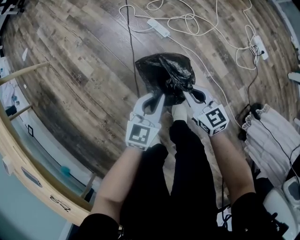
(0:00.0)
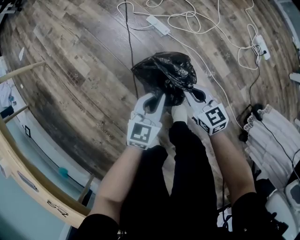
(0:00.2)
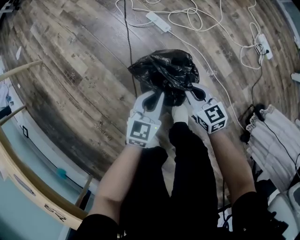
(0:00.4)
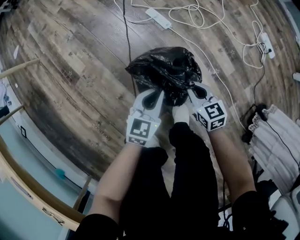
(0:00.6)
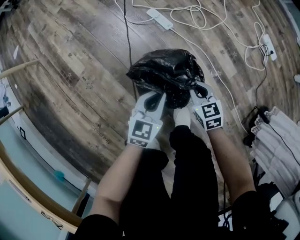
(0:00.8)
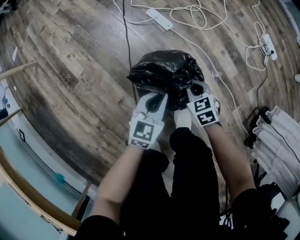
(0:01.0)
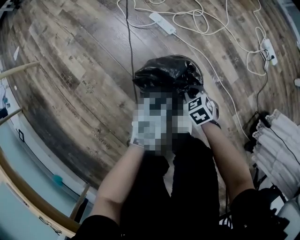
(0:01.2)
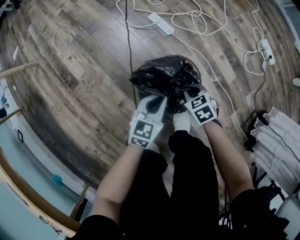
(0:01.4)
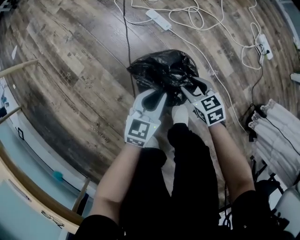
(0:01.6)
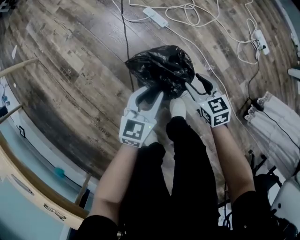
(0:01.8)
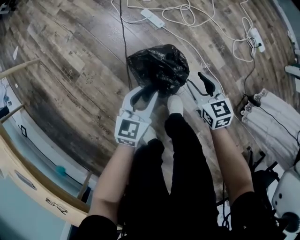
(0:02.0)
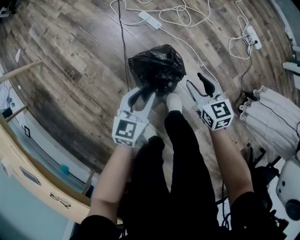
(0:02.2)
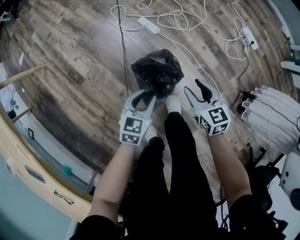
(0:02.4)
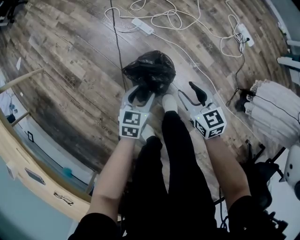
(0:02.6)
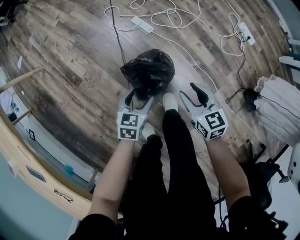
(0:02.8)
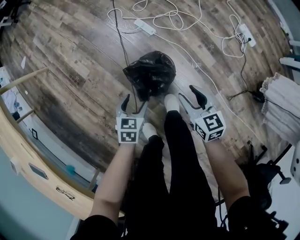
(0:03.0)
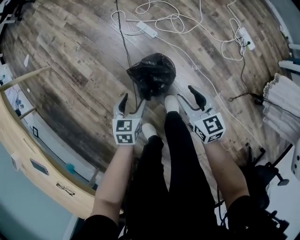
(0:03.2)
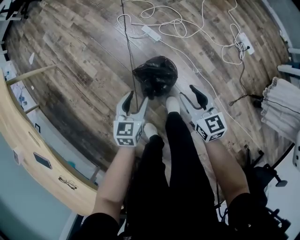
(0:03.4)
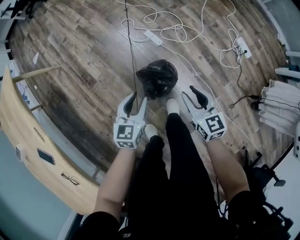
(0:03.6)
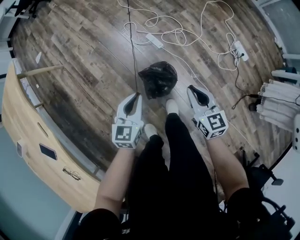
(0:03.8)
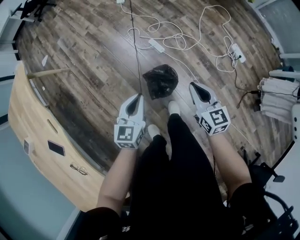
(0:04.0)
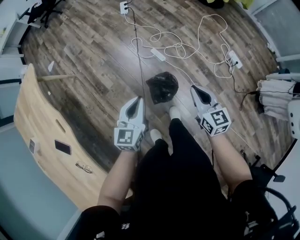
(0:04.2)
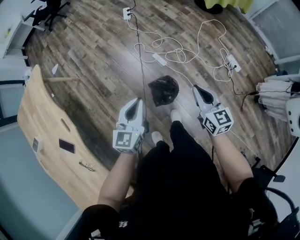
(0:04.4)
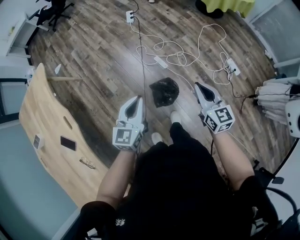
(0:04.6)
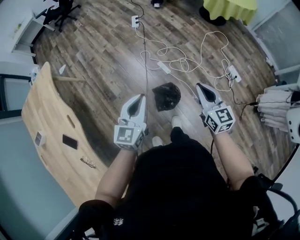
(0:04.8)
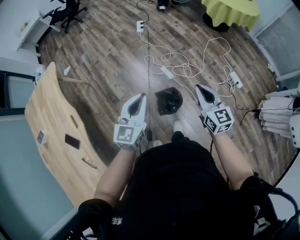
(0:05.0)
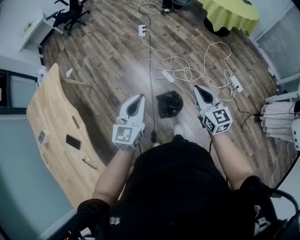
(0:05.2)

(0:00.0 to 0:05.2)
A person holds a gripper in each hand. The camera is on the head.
0:00.0 - 0:01.8: The grippers both shift downward by about 10 cm. The right gripper opens its fingers; the left gripper opens its fingers.
0:01.8 - 0:03.4: Both grippers travel together upward, about 25 cm. The left gripper opens up.
0:03.4 - 0:05.2: Both grippers travel together upward, approximately 40 cm. The left gripper rotates approximately 30 degrees, and closes; the right gripper closes.

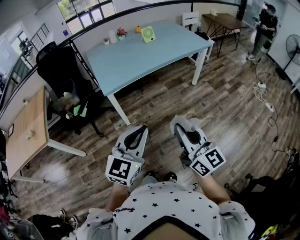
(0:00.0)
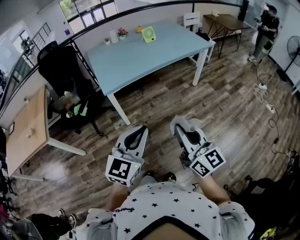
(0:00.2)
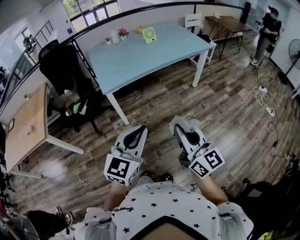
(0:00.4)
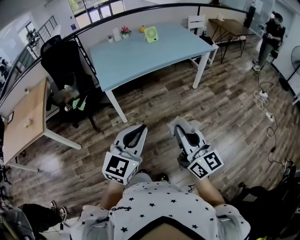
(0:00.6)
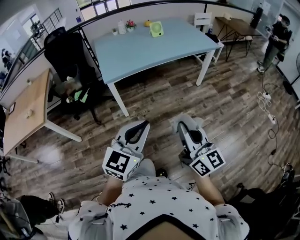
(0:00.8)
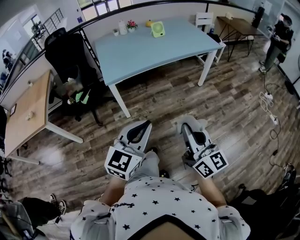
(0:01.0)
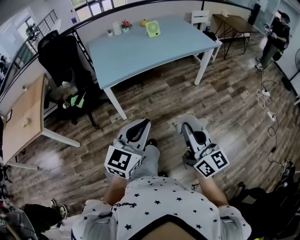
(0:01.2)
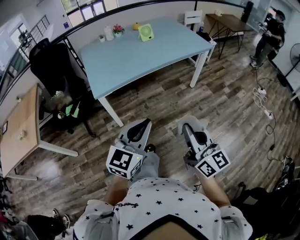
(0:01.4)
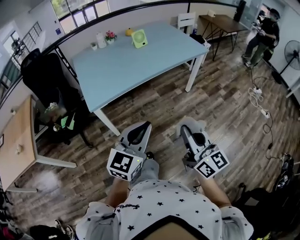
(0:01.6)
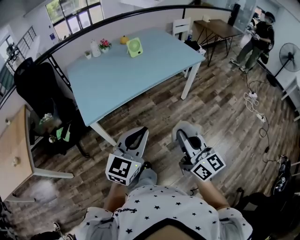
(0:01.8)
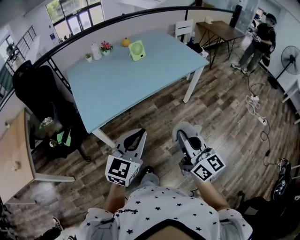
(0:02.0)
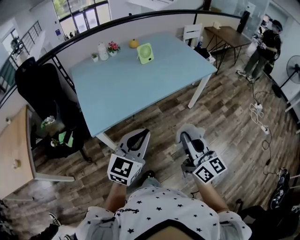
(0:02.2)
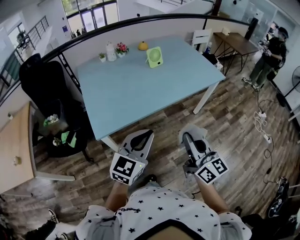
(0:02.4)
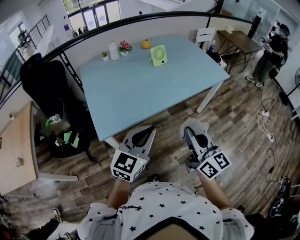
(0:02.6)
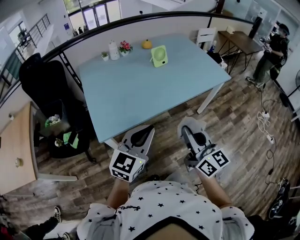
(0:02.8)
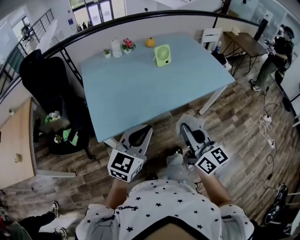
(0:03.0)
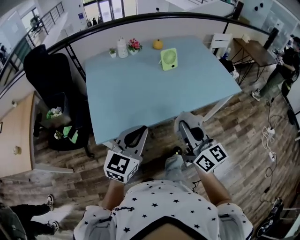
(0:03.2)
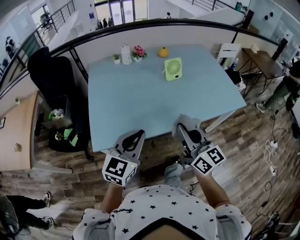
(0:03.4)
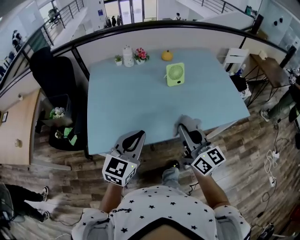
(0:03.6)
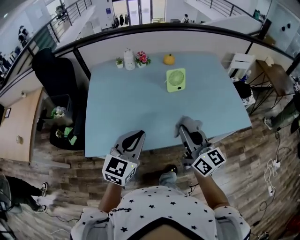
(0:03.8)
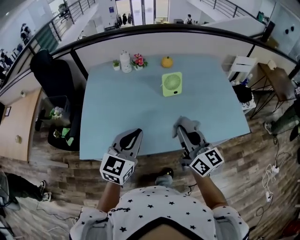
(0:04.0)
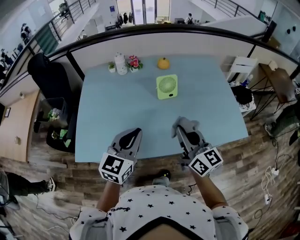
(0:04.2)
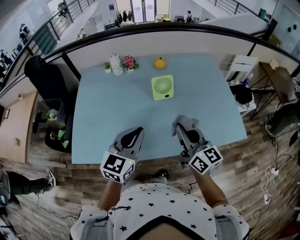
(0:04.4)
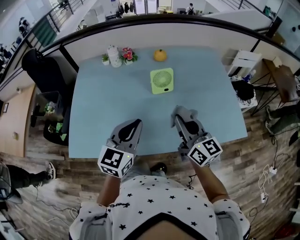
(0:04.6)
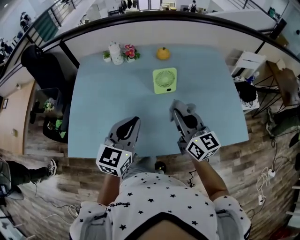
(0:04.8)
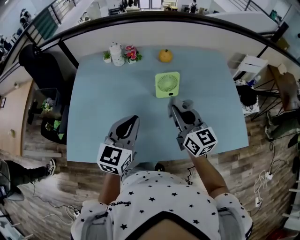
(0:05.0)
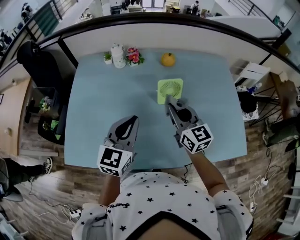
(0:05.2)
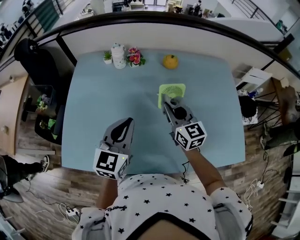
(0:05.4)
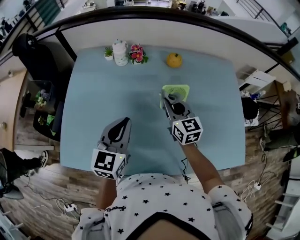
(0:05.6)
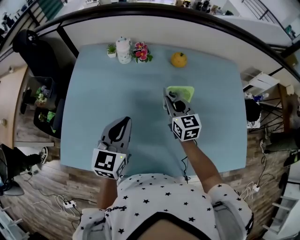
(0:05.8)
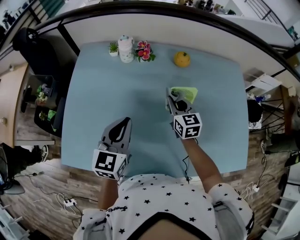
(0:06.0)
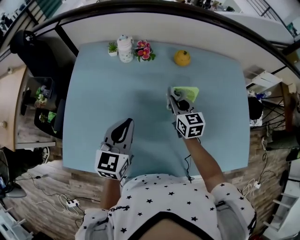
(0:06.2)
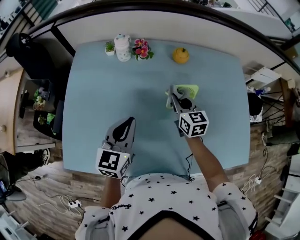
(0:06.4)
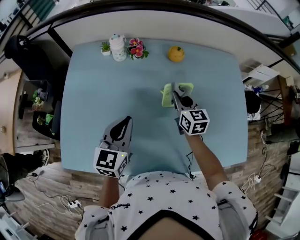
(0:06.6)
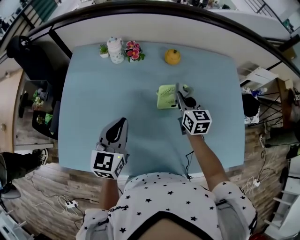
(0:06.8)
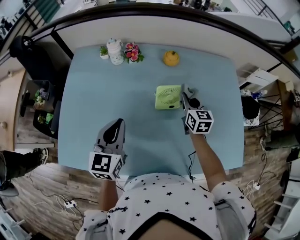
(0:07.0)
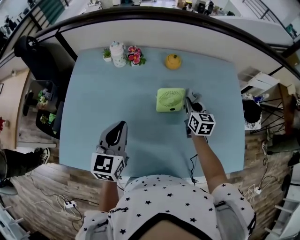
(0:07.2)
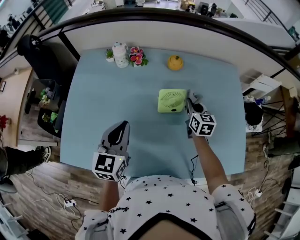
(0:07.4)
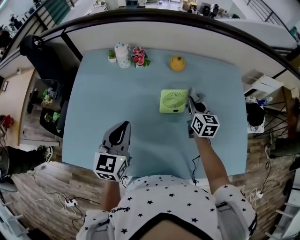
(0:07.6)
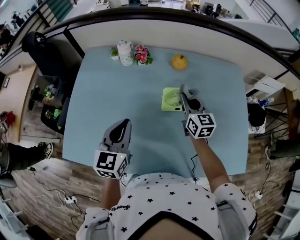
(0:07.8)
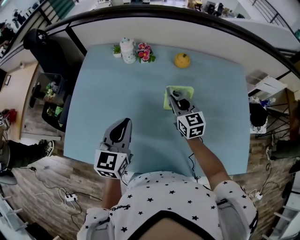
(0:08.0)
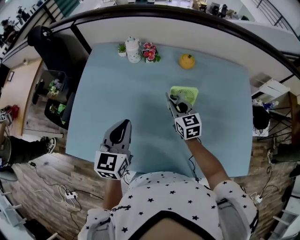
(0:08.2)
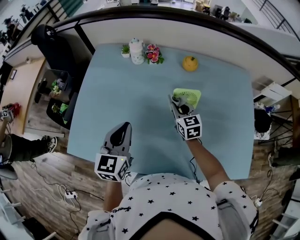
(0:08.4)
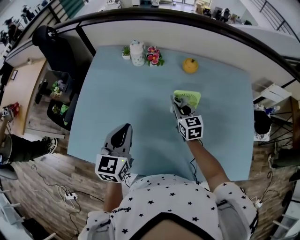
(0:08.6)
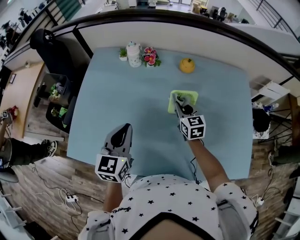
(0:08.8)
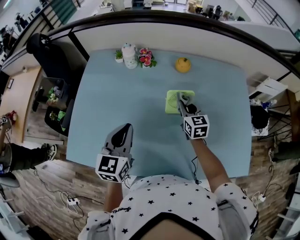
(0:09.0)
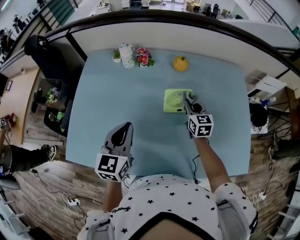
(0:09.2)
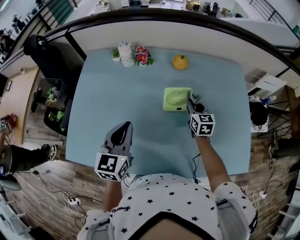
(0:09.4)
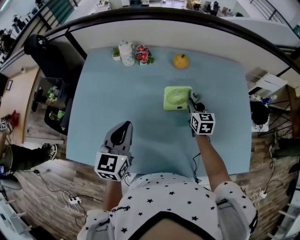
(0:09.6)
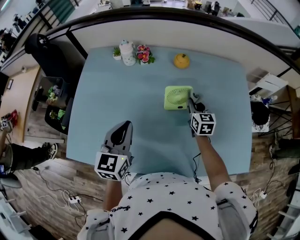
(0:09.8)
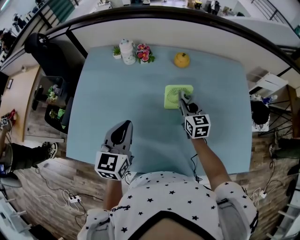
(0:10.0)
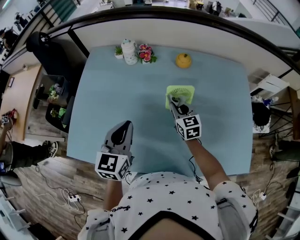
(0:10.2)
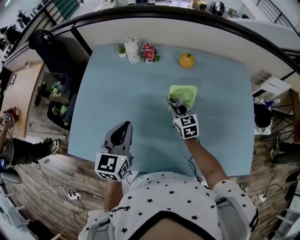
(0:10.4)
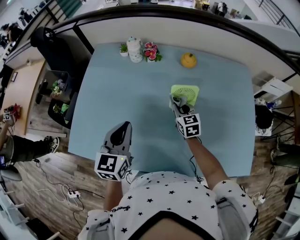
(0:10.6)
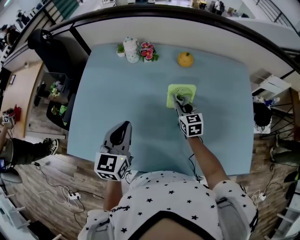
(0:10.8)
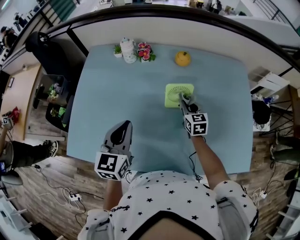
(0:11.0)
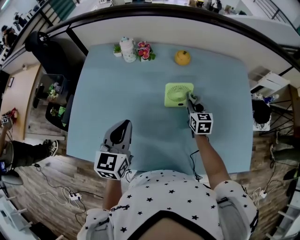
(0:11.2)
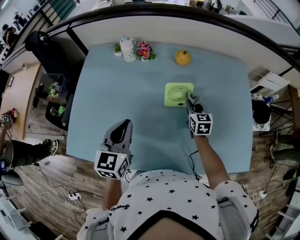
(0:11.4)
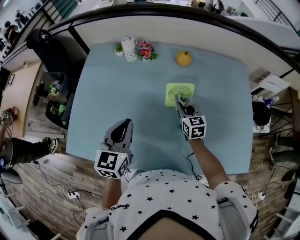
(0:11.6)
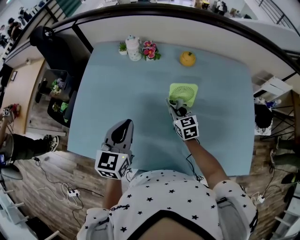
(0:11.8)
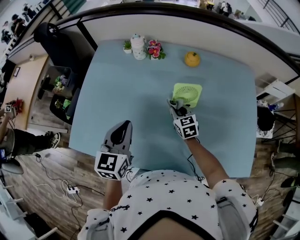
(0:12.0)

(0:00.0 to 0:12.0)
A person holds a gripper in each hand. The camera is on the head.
0:00.0 - 0:01.6: The left gripper moves forward, some 15 cm. The right gripper shifts approximately 15 cm forward and to the right.
0:01.6 - 0:03.0: Both grippers travel together forward and to the left, some 25 cm.
0:03.0 - 0:04.4: The grippers both shift forward and to the right by roughly 35 cm. The left gripper changes its angle by about 20 degrees.
0:04.4 - 0:06.0: The right gripper shifts roughly 35 cm forward and downward, and rotates roughly 30 degrees, while the left gripper moves forward and to the left, roughly 20 cm.
0:06.0 - 0:07.6: The right gripper moves to the right, roughly 15 cm.
0:07.6 - 0:09.0: The right gripper shifts roughly 5 cm to the left.
0:09.0 - 0:10.4: The right gripper heads to the left, covering roughly 5 cm.
0:10.4 - 0:12.0: The right gripper travels to the right and back again, some 10 cm each way.

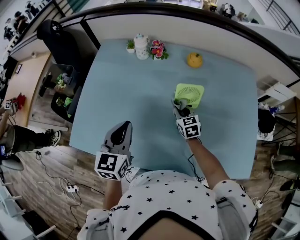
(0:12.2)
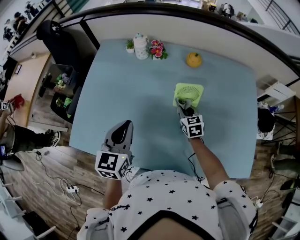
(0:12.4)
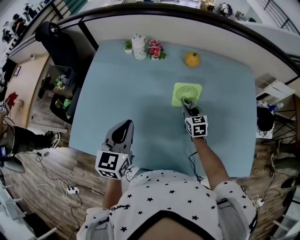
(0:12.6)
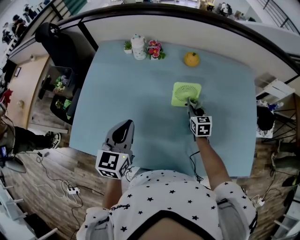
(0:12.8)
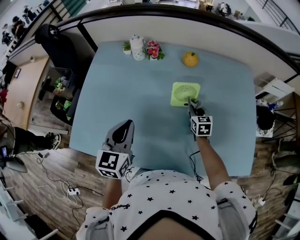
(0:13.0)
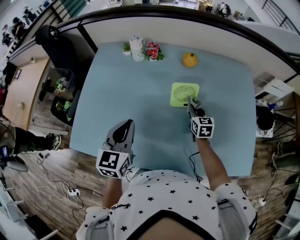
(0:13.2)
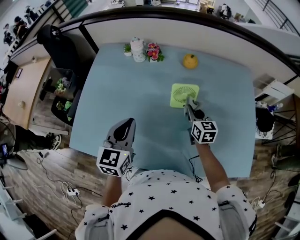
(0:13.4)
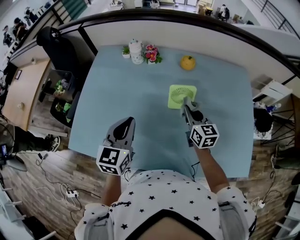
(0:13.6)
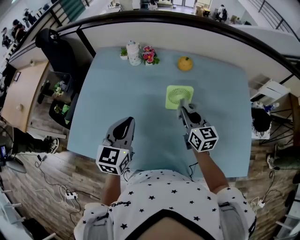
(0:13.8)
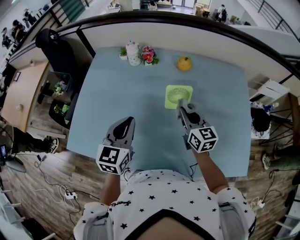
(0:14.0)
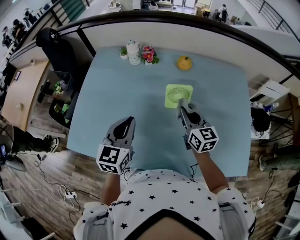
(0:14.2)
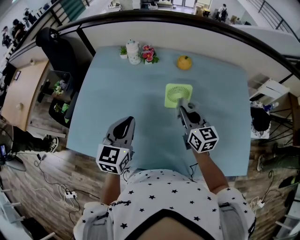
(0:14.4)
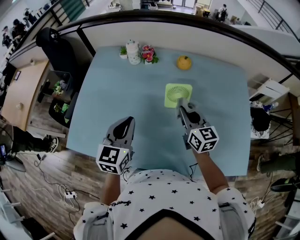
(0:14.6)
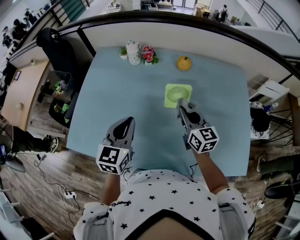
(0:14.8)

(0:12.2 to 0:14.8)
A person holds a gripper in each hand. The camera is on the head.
0:12.2 - 0:13.4: The right gripper is displaced to the right and upward by approximately 10 cm, and swivels some 20 degrees.
0:13.4 - 0:14.8: The right gripper travels upward by some 10 cm.

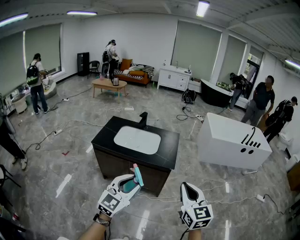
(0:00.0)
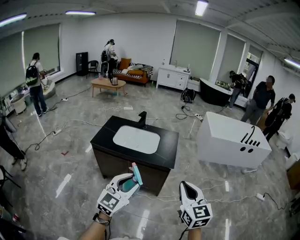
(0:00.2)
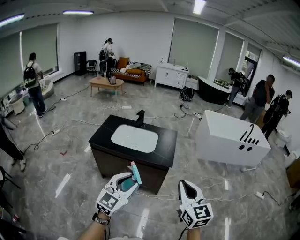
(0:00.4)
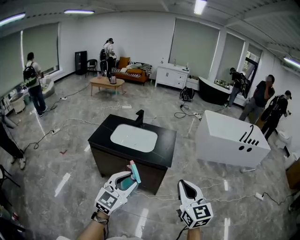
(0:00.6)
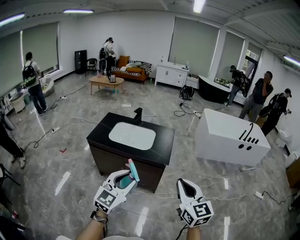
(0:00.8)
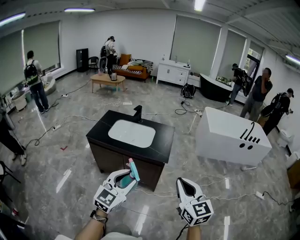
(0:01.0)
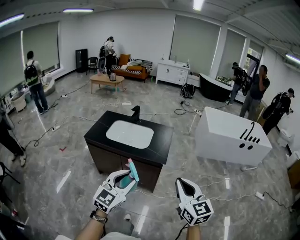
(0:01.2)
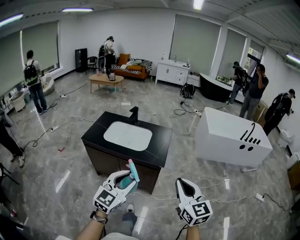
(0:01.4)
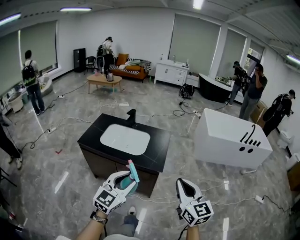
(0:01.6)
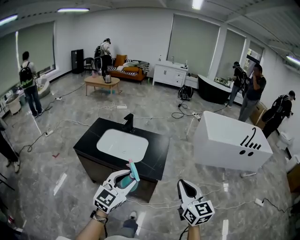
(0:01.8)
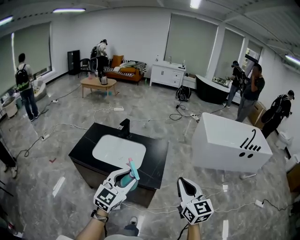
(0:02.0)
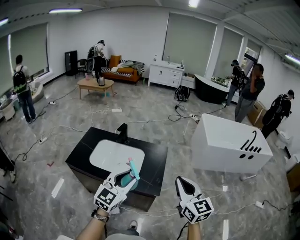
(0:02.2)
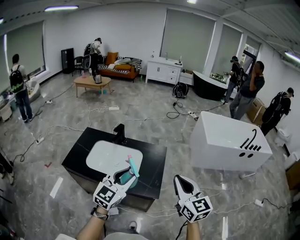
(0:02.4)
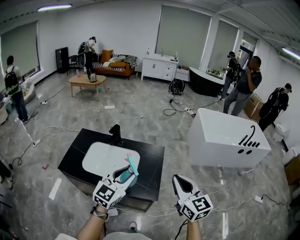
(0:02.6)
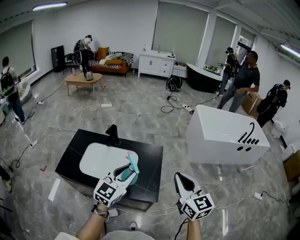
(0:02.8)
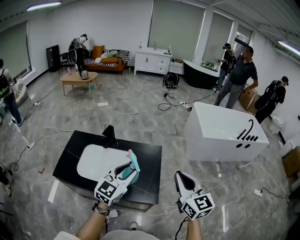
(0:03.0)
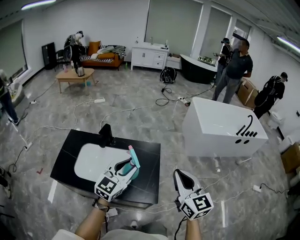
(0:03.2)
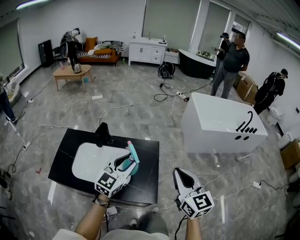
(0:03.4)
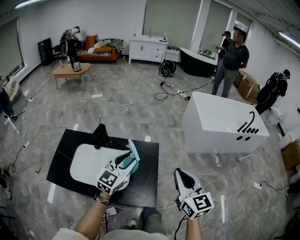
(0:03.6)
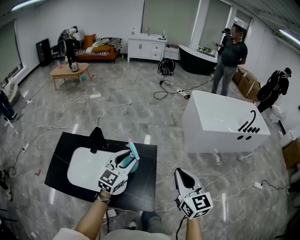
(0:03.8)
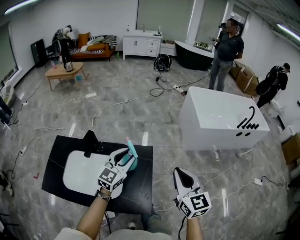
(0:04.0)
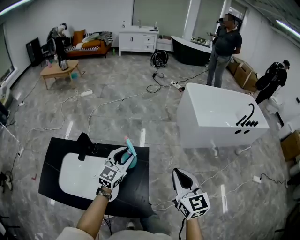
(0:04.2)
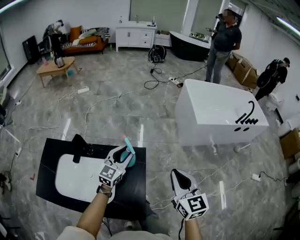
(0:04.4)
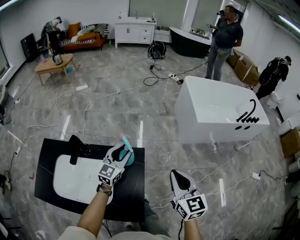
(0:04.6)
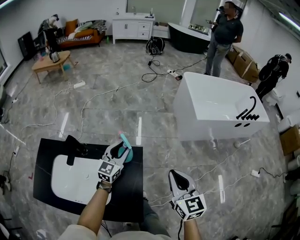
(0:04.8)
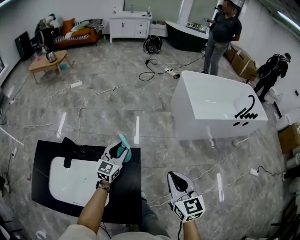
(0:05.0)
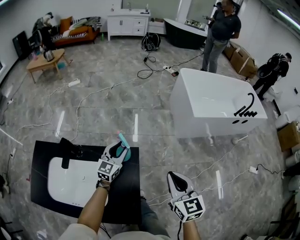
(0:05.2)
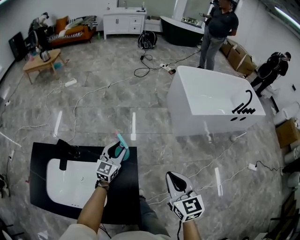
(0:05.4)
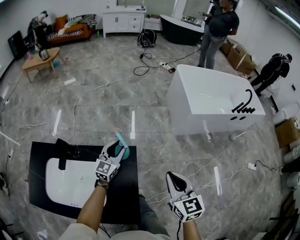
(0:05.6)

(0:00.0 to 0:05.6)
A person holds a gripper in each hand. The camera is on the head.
0:00.0 - 0:01.4: Both grippers travel together to the right and forward, about 10 cm.
0:01.4 - 0:02.8: The two grippers go approximately 40 cm forward.
0:02.8 - 0:04.2: The two grippers go about 25 cm forward.
0:04.2 - 0:05.6: The right gripper is displaced forward and downward by approximately 10 cm. The left gripper goes some 20 cm forward and downward.
